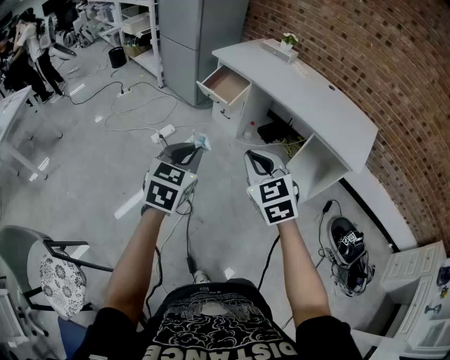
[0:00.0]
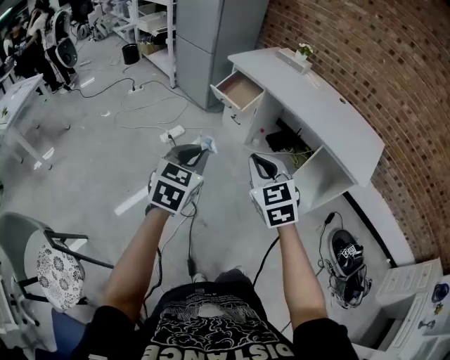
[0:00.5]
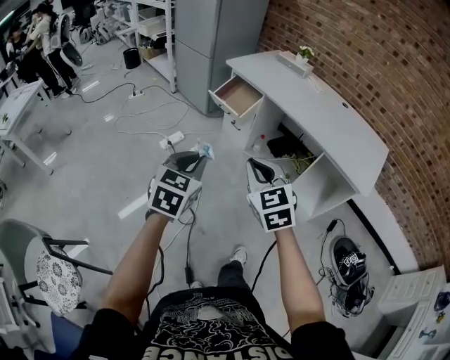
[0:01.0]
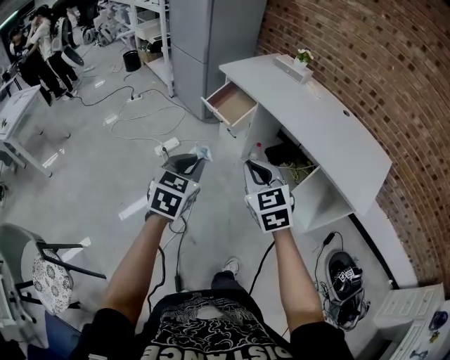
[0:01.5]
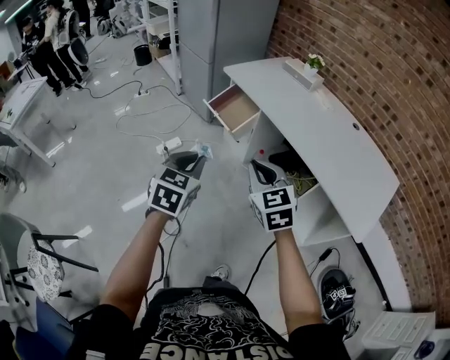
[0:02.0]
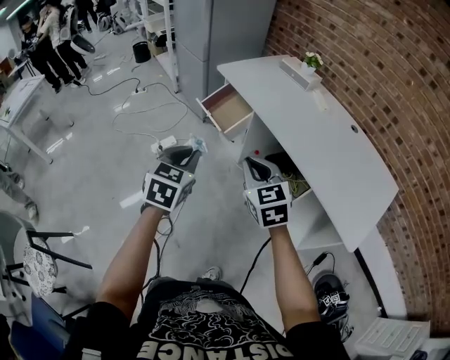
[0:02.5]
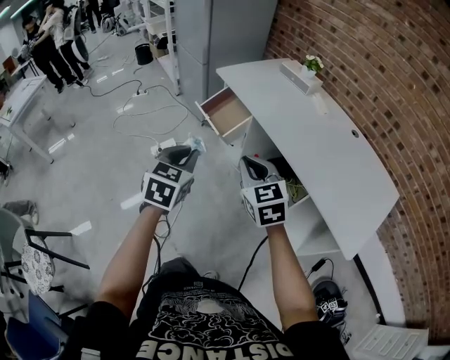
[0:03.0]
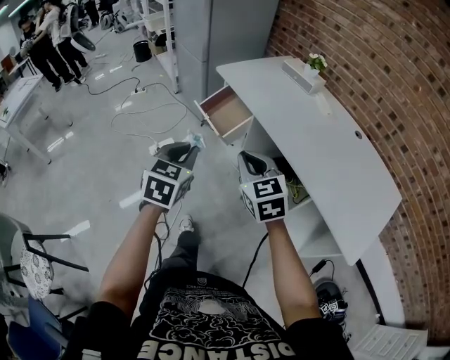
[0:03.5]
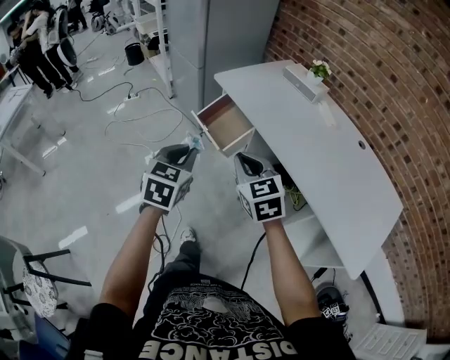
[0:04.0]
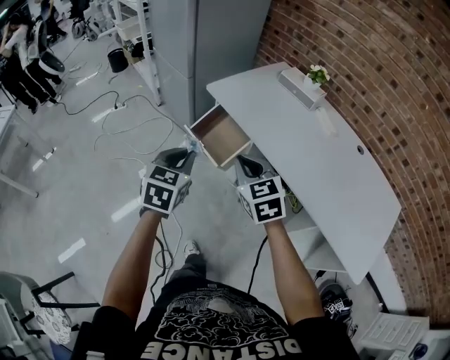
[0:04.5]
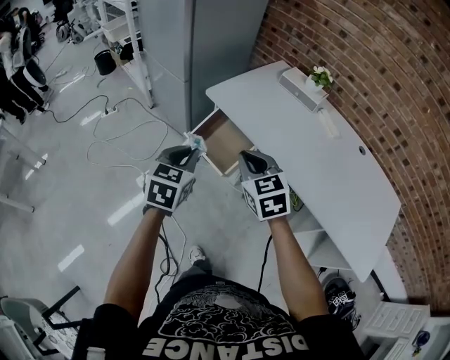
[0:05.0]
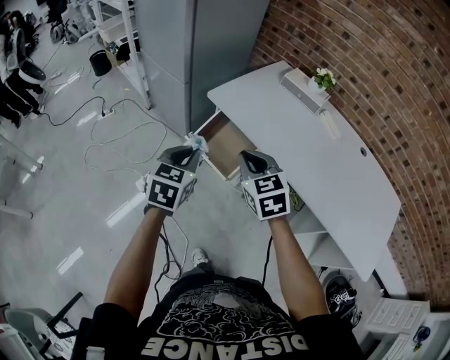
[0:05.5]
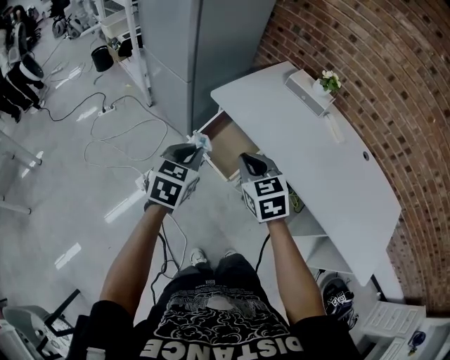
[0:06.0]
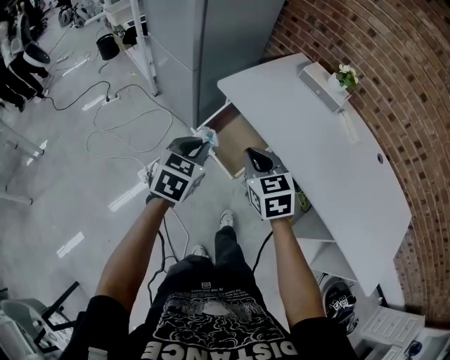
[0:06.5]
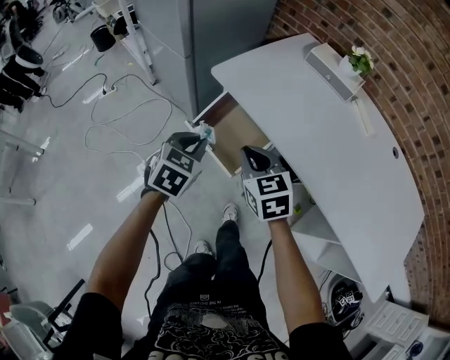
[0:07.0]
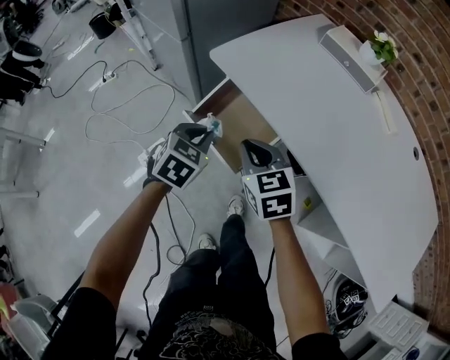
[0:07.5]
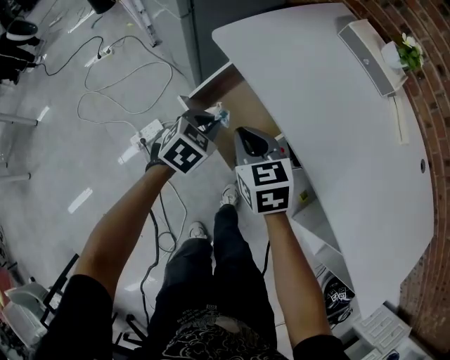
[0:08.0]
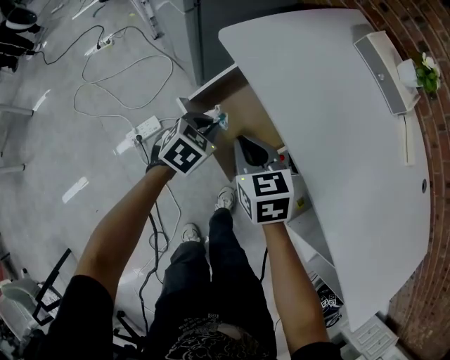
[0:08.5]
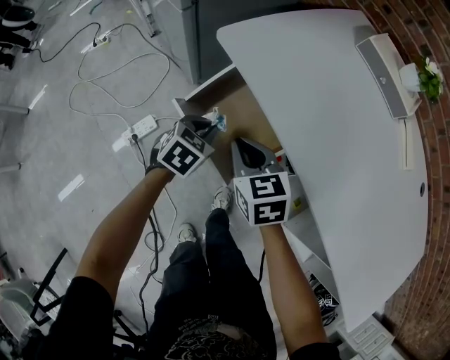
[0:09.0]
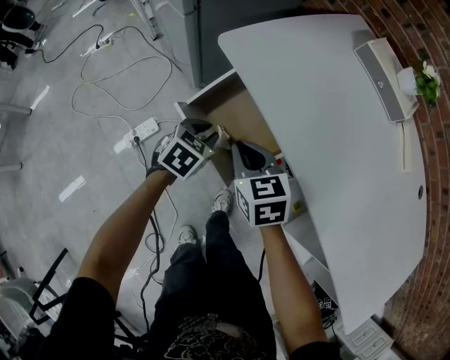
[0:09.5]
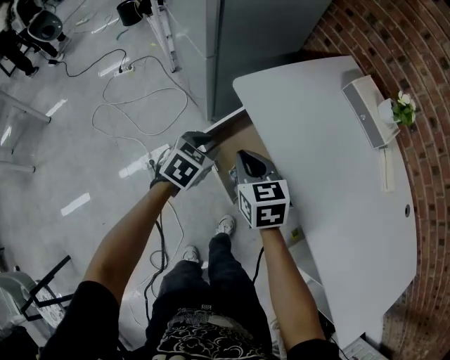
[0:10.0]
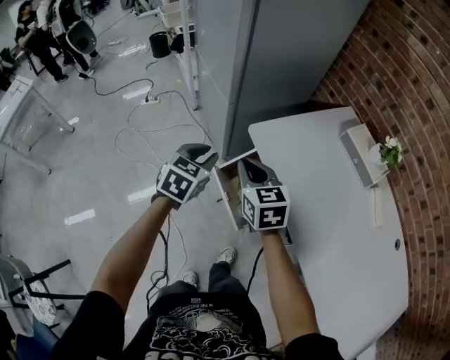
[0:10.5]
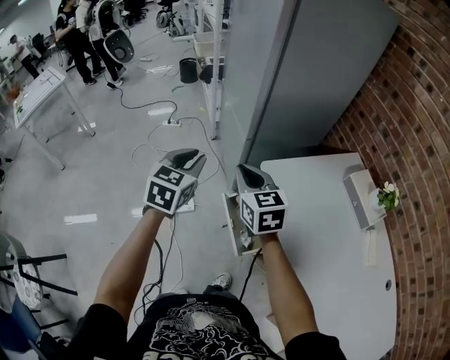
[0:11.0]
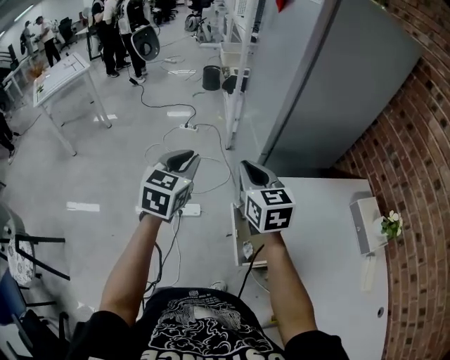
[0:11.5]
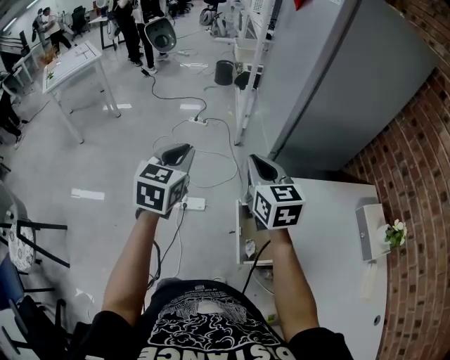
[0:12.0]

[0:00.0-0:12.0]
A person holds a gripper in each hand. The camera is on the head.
0:00.0 to 0:02.0: Both grippers travel together forward and to the right, some 25 cm.
0:02.0 to 0:04.0: Both grippers move forward, roughly 20 cm.
0:04.0 to 0:06.0: The left gripper moves forward, about 20 cm. Meanwhile the right gripper goes roughly 20 cm forward and to the left.
0:06.0 to 0:08.0: Both grippers move downward and forward, about 25 cm. The left gripper changes its angle by roughly 20 degrees.
0:08.0 to 0:10.0: The right gripper moves about 5 cm, while the left gripper moves upward, some 5 cm.
0:10.0 to 0:12.0: Both grippers move upward, approximately 25 cm. The right gripper swivels about 30 degrees; the left gripper turns by about 50 degrees.

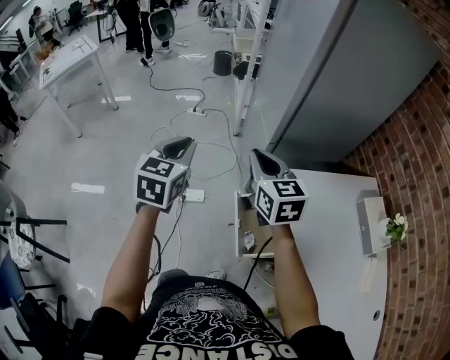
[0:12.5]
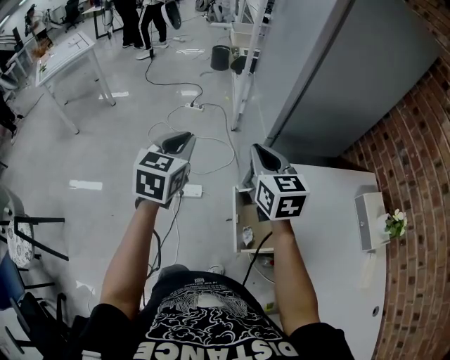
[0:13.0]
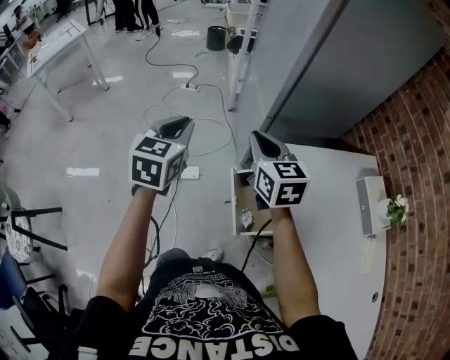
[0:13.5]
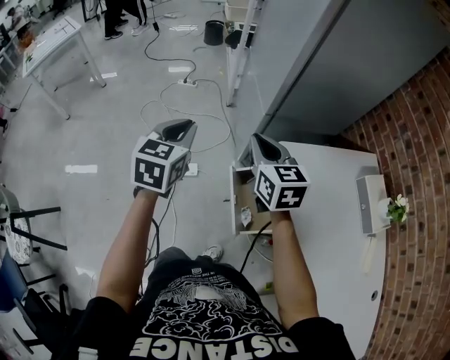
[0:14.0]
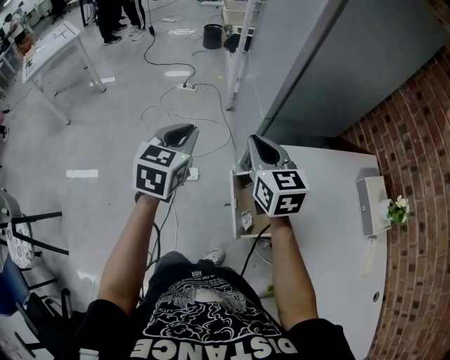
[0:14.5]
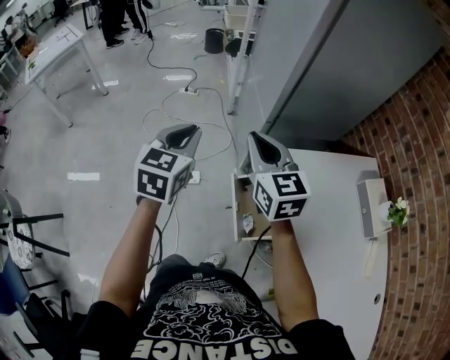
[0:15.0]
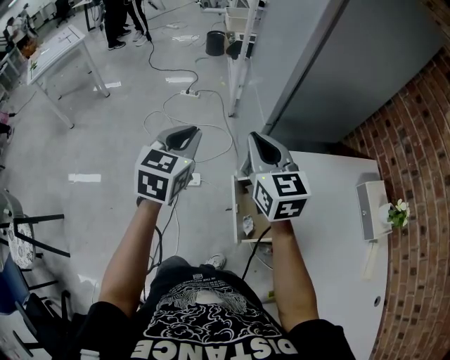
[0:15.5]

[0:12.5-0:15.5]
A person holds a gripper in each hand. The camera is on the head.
0:12.5 to 0:14.0: There are only small adjustments of the grippers.
0:14.0 to 0:15.5: The right gripper travels upward by roughly 5 cm.

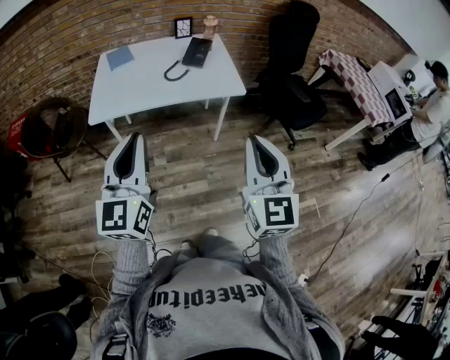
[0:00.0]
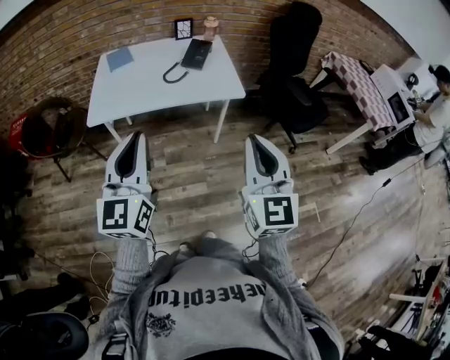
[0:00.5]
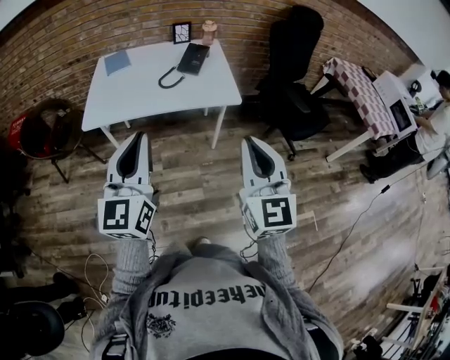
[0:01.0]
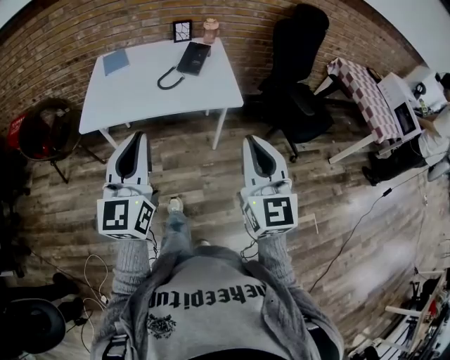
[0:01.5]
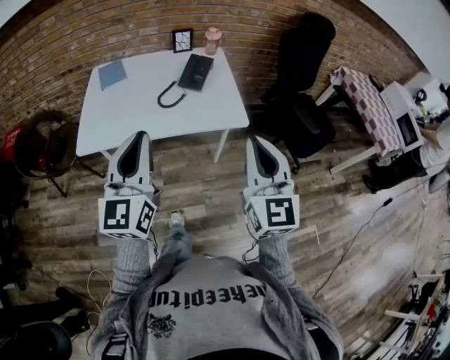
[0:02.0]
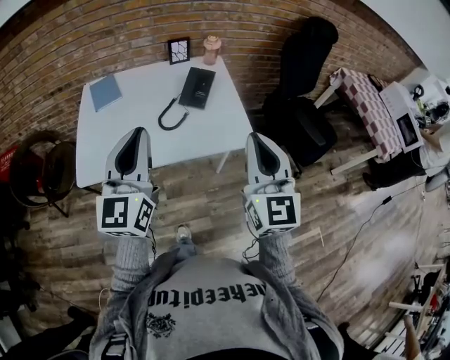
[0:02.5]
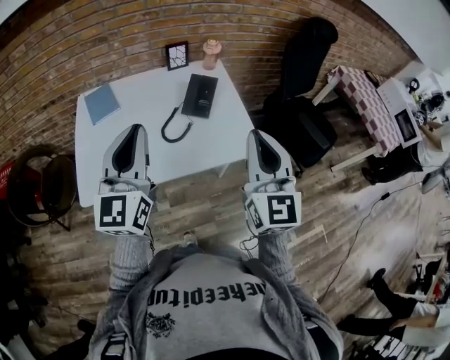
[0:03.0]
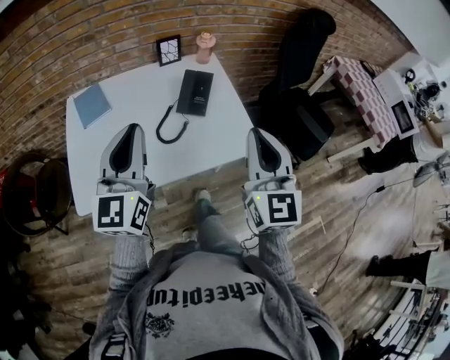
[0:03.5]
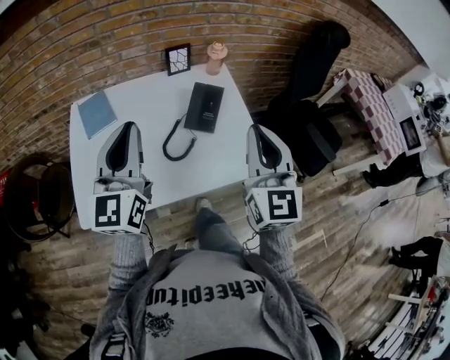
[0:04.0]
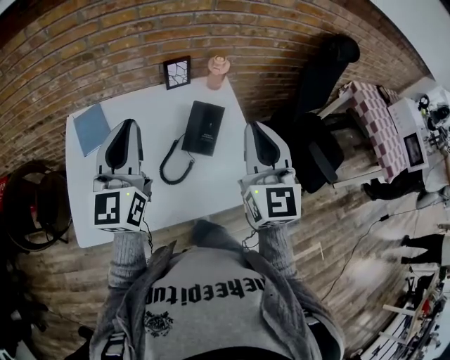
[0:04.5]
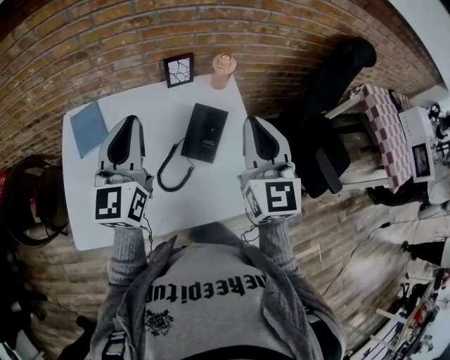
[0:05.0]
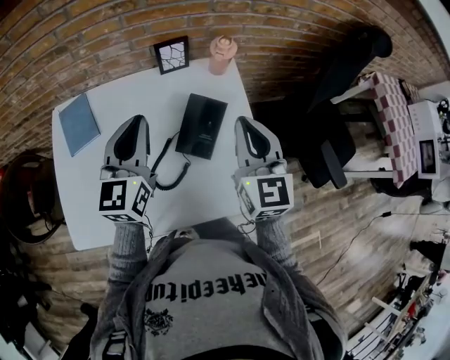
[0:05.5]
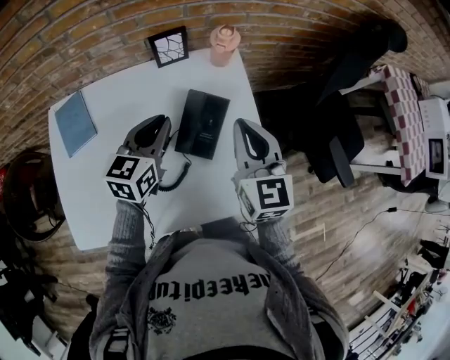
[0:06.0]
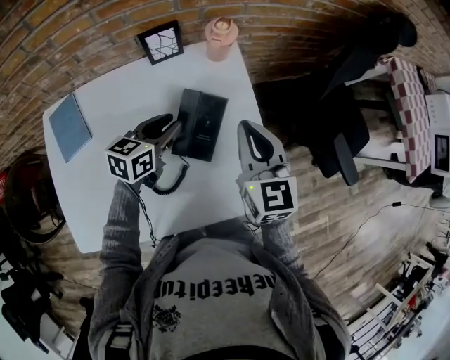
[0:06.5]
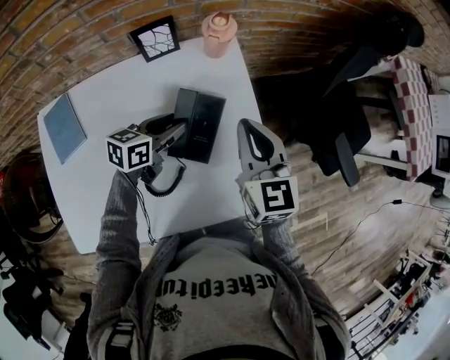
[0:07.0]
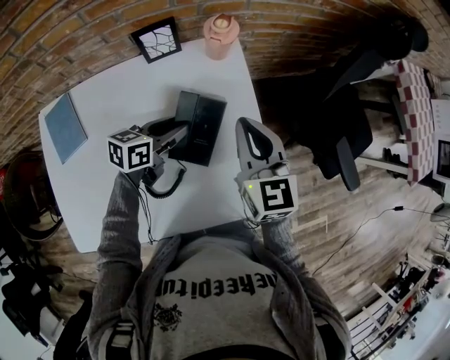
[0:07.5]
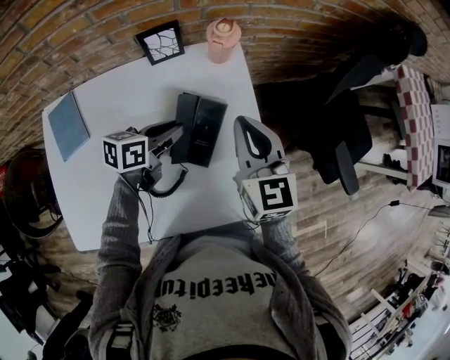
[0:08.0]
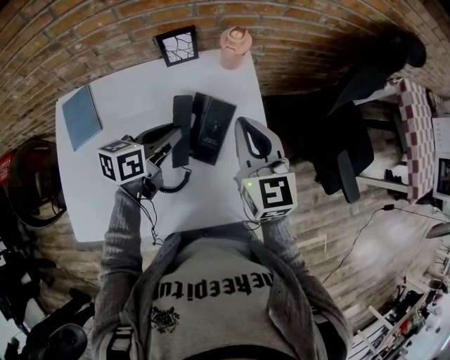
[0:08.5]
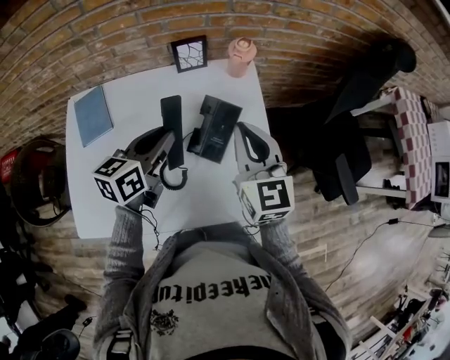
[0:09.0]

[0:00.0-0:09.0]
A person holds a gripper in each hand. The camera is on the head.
0:00.0 to 0:02.0: The grippers both shift forward by approximately 20 cm.
0:02.0 to 0:04.5: The two grippers go about 40 cm forward.
0:04.5 to 0:07.0: The right gripper shifts roughly 25 cm downward and forward, and swivels some 30 degrees, while the left gripper shifts roughly 40 cm downward and forward, tilts its fingers roughly 40 degrees downward, and opens up.
0:07.0 to 0:09.0: The right gripper heads upward, covering roughly 5 cm. The left gripper heads upward, backward and to the left, covering approximately 15 cm, and changes its angle by approximately 20 degrees.

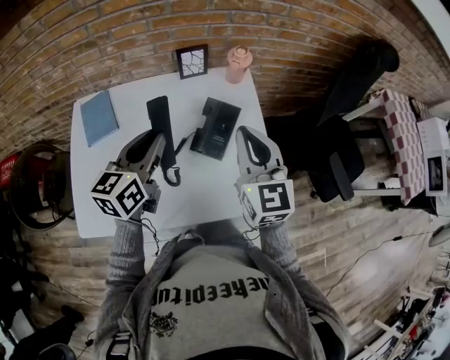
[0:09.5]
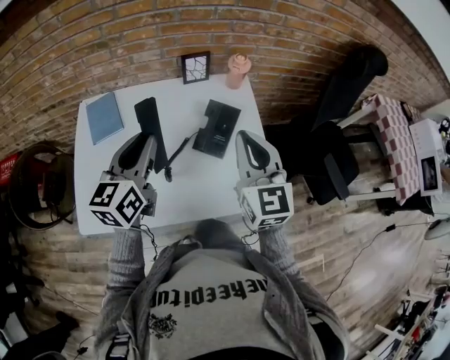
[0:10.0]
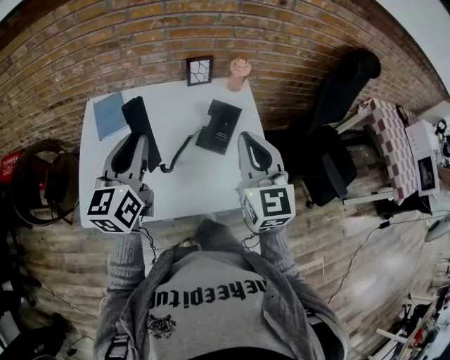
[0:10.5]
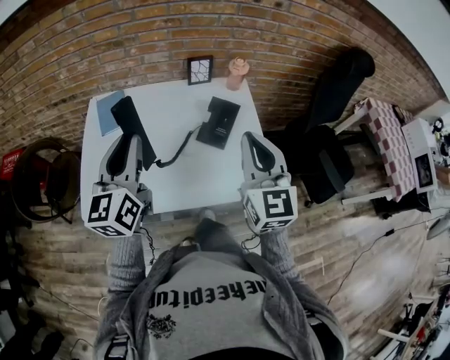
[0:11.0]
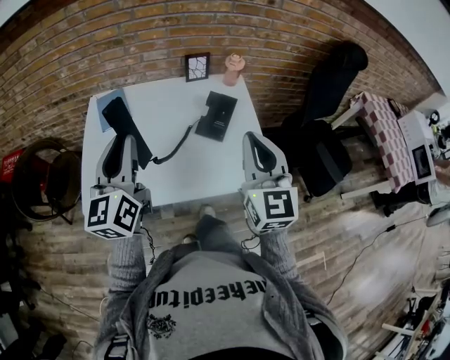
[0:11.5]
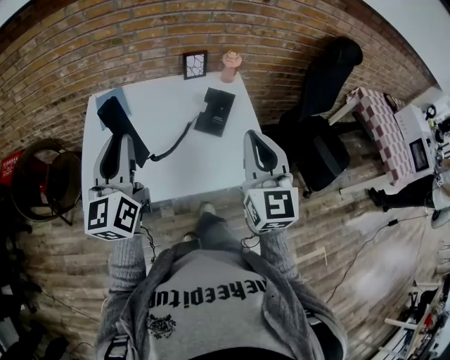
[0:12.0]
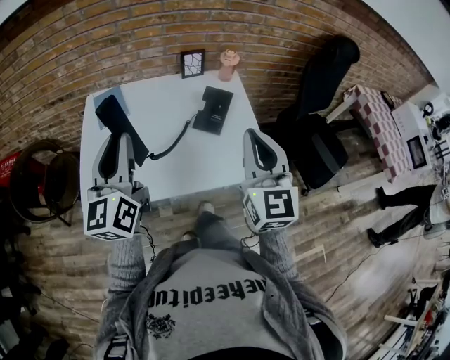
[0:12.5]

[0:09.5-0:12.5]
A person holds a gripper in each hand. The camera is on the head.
0:09.5 to 0:11.0: The left gripper heads backward, upward and to the left, covering some 20 cm, and turns by about 30 degrees. The right gripper moves backward and upward, about 15 cm.
0:11.0 to 0:12.5: Both grippers travel together backward, approximately 5 cm.
